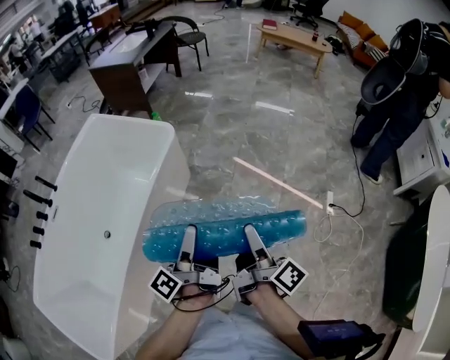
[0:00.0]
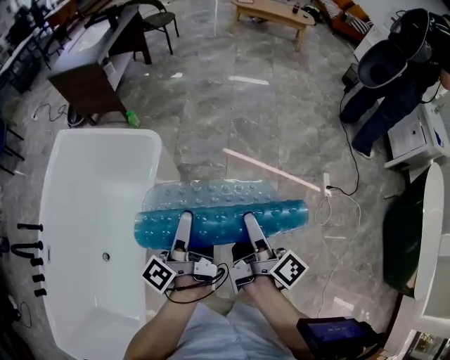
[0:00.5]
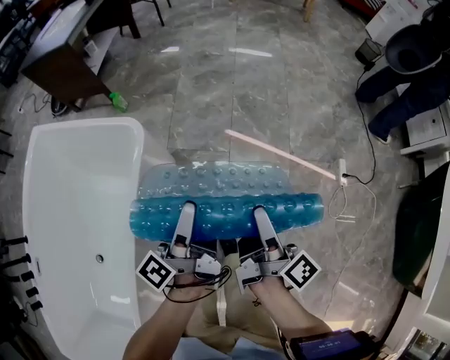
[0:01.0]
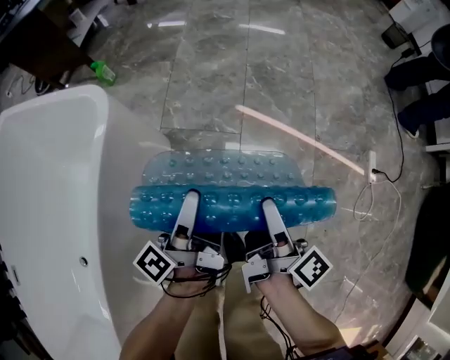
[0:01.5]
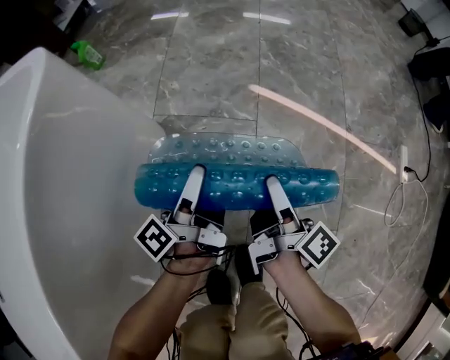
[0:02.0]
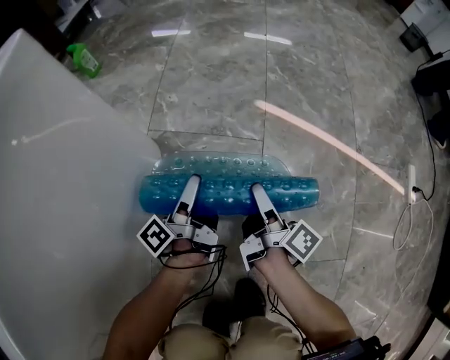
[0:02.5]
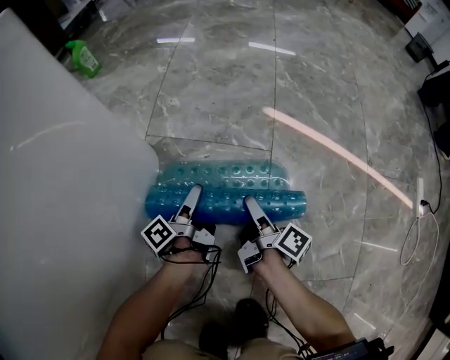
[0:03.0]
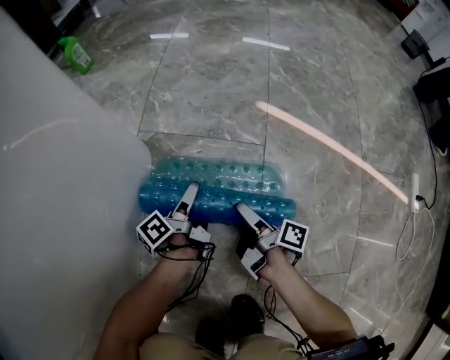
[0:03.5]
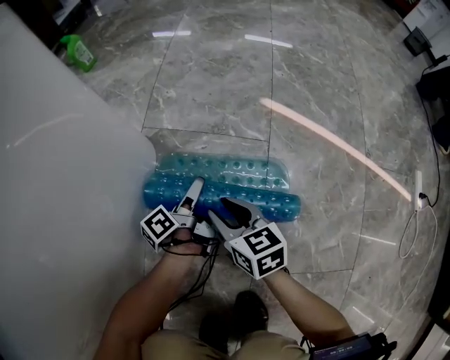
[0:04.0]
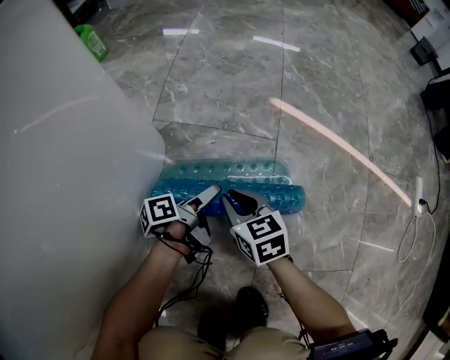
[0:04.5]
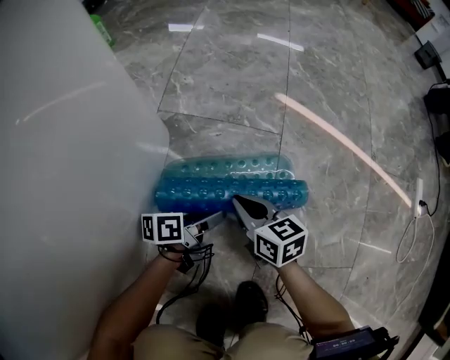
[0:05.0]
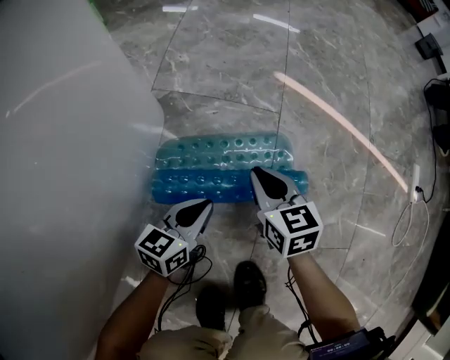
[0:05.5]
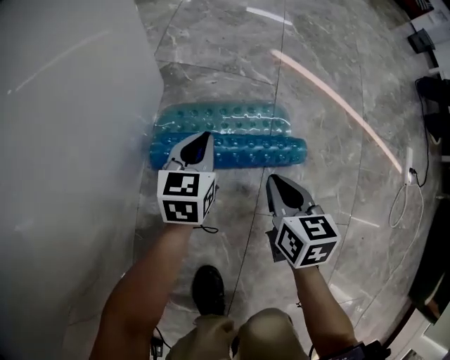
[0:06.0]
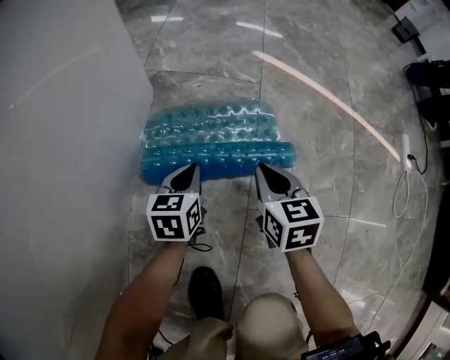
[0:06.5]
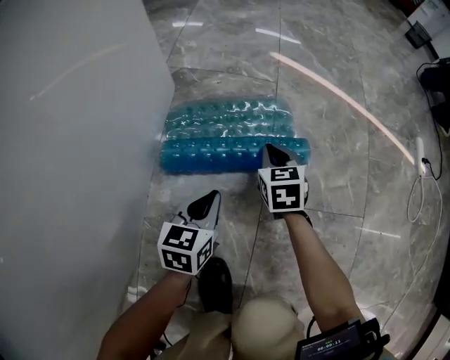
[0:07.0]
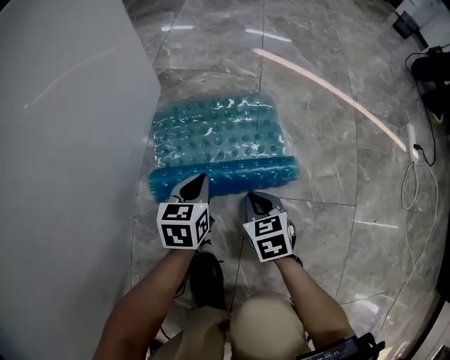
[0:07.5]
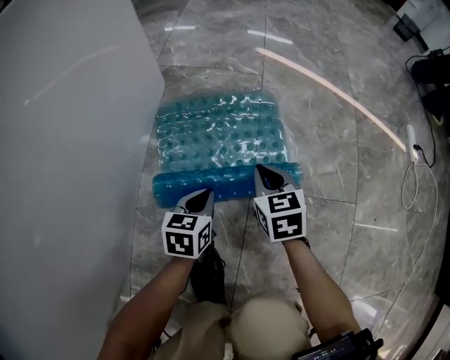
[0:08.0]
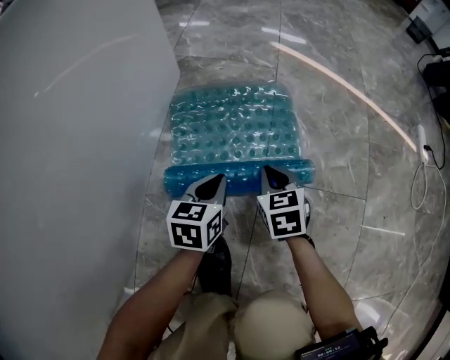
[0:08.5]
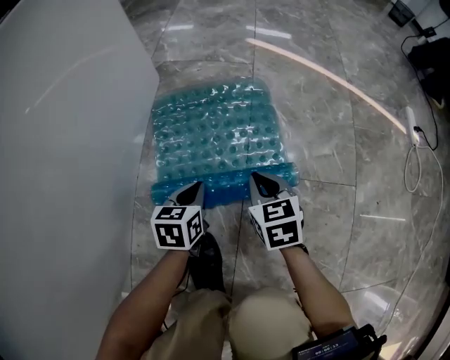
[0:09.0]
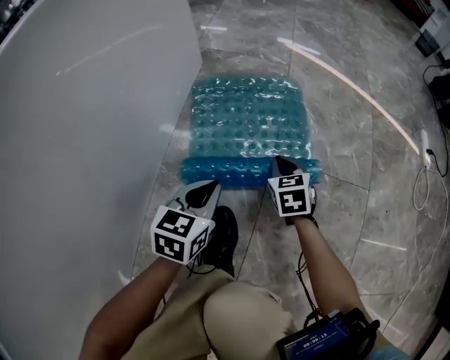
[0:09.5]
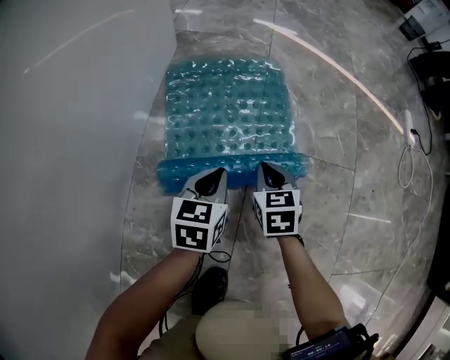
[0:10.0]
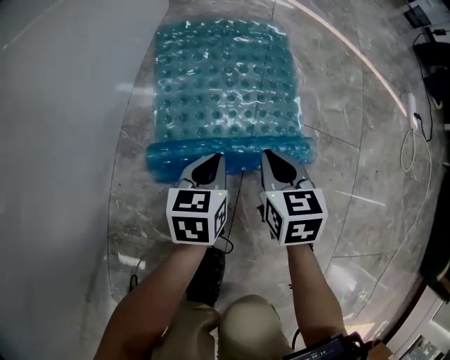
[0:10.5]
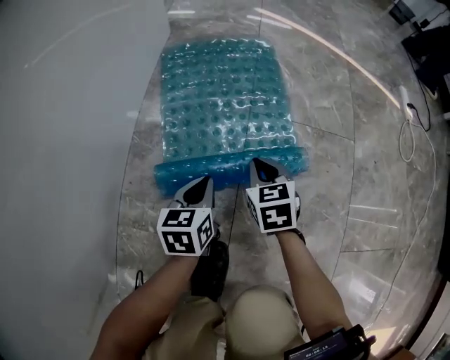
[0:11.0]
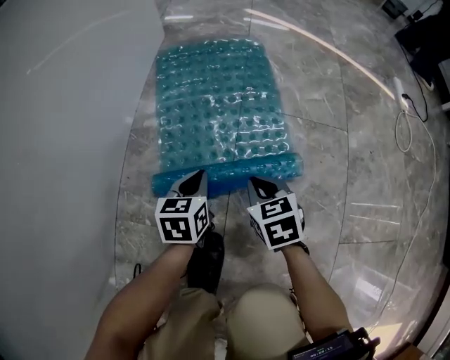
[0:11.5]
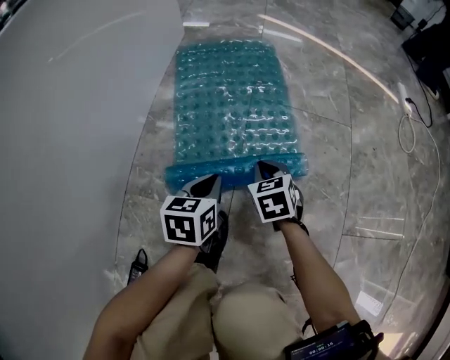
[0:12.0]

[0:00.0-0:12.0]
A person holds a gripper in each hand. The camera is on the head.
0:00.0 to 0:02.0: The grippers both shift downward and forward by approximately 70 cm. The left gripper swivels some 20 degrees.
0:02.0 to 0:04.0: The left gripper moves downward, roughly 30 cm. The right gripper moves downward and to the left, roughly 25 cm, rolls counterclockwise, seen from behind, by some 70 degrees, and closes up.
0:04.0 to 0:06.0: The left gripper shifts about 10 cm upward and backward, rotates around the line of its fingers by approximately 80 degrees, clockwise from behind, and closes up. Meanwhile the right gripper heads backward and to the right, covering approximately 15 cm, changes its angle by roughly 20 degrees, and closes.
0:06.0 to 0:08.0: The left gripper heads backward, covering roughly 20 cm. The right gripper shifts approximately 5 cm backward.
0:08.0 to 0:10.0: The right gripper shifts some 15 cm backward. Meanwhile the left gripper goes about 10 cm backward and upward.
0:10.0 to 0:12.0: Both grippers travel together backward, about 20 cm.

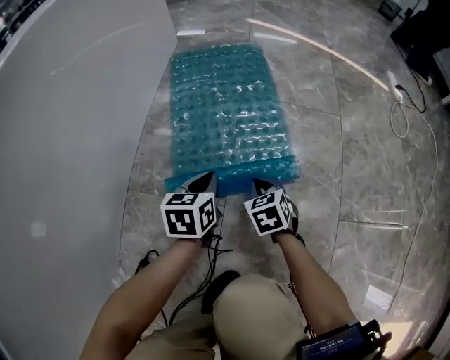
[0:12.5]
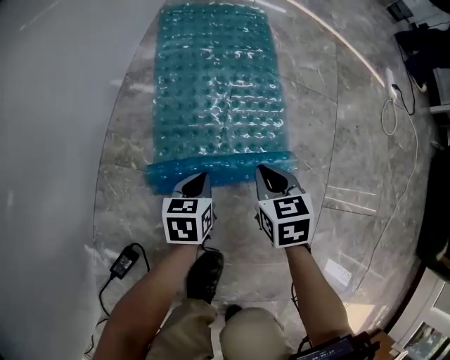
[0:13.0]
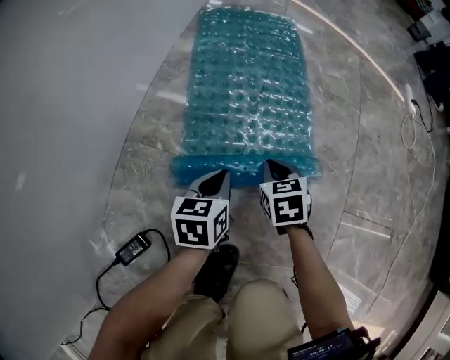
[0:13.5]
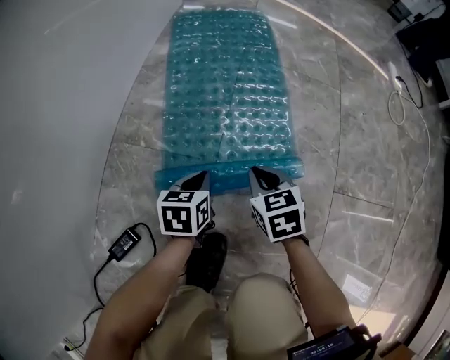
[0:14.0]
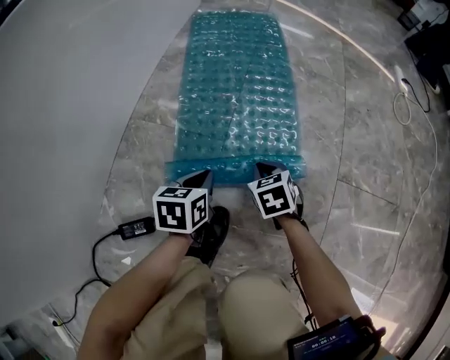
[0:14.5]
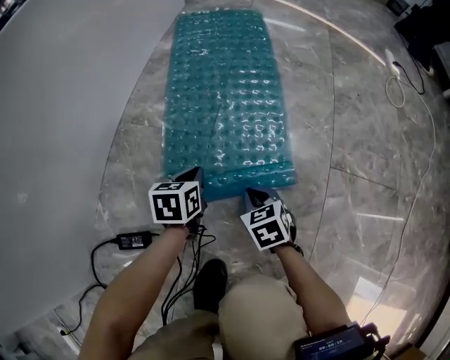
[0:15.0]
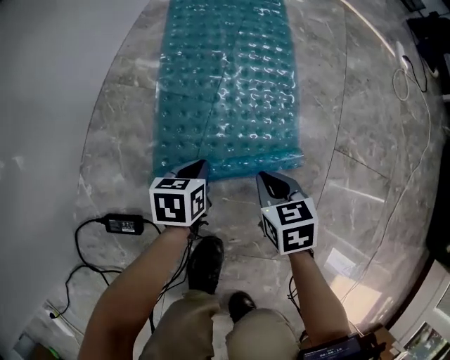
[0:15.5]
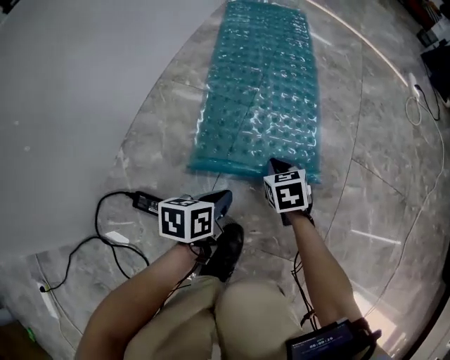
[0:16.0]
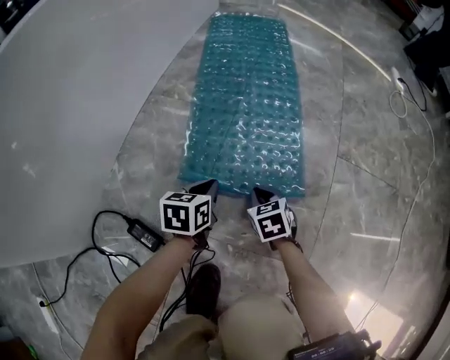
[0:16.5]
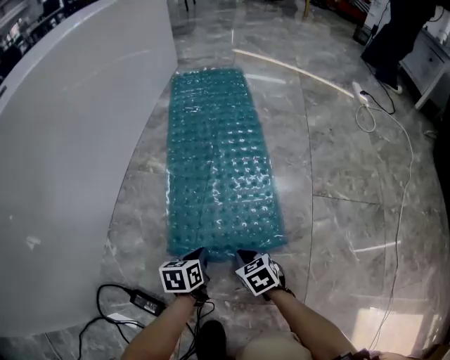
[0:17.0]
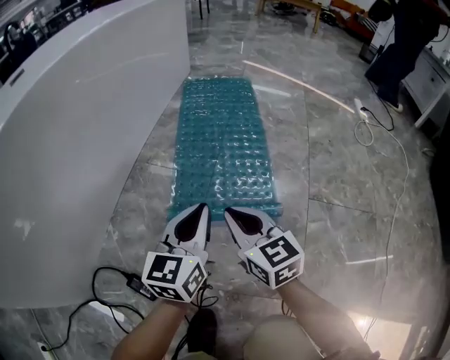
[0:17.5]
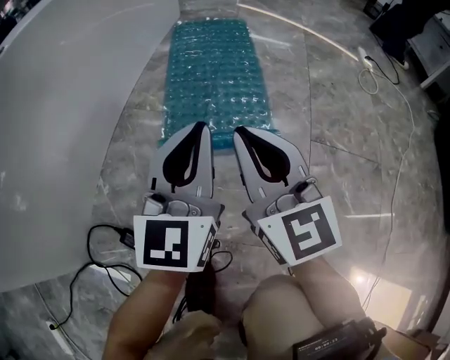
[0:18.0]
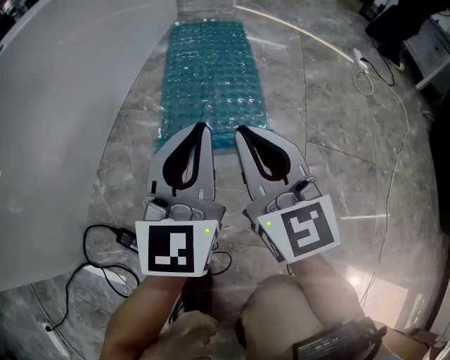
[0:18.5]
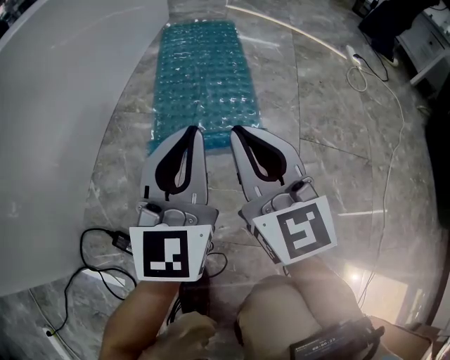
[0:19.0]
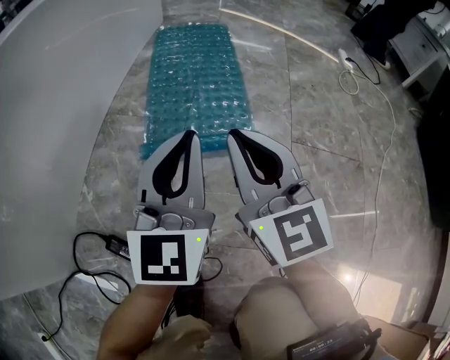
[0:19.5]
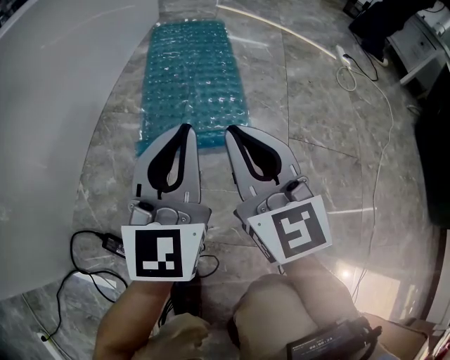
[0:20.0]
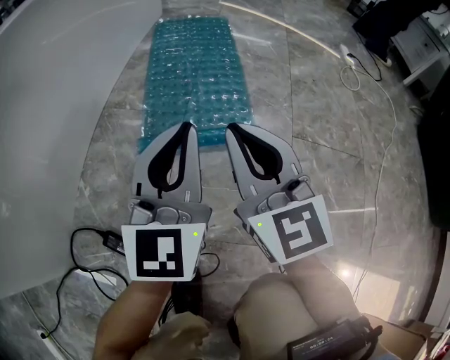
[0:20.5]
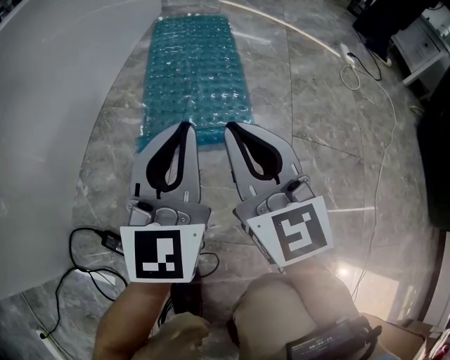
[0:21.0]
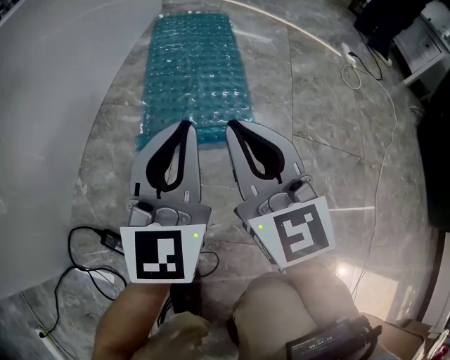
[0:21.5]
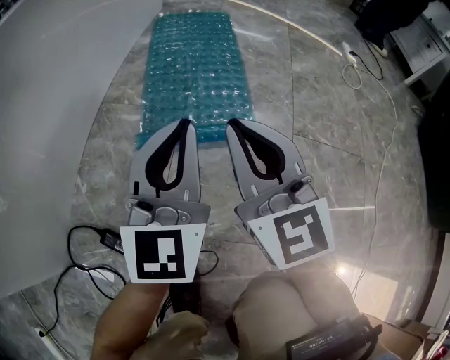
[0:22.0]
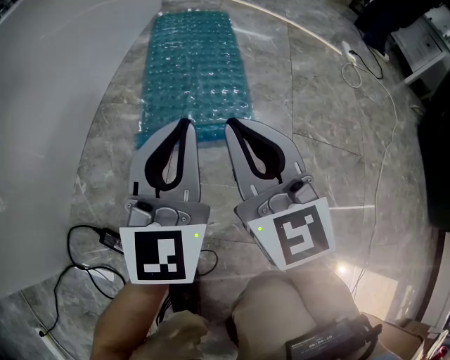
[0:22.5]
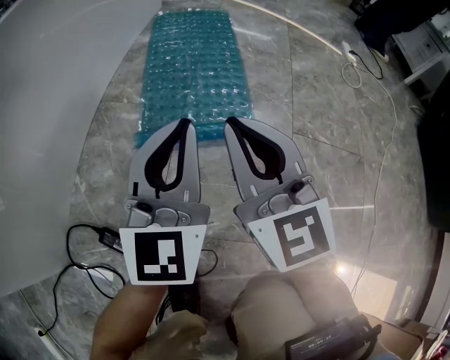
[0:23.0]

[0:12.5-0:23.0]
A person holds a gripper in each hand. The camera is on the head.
0:12.5 to 0:14.5: Both grippers travel together backward, about 20 cm.
0:14.5 to 0:16.5: Both grippers move backward, approximately 15 cm.
0:16.5 to 0:19.0: Both grippers travel together upward, about 35 cm. The left gripper tilts its fingers about 50 degrees upward. The right gripper points its fingers about 50 degrees further upward.
0:19.0 to 0:21.0: Neither gripper changes place.
0:21.0 to 0:23.0: Neither gripper changes place.

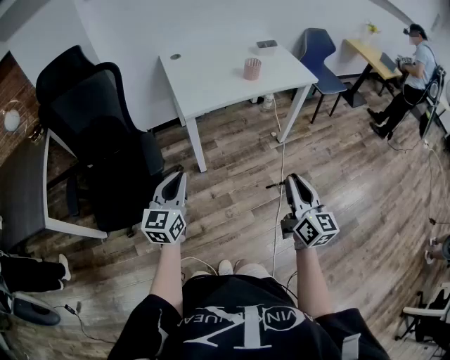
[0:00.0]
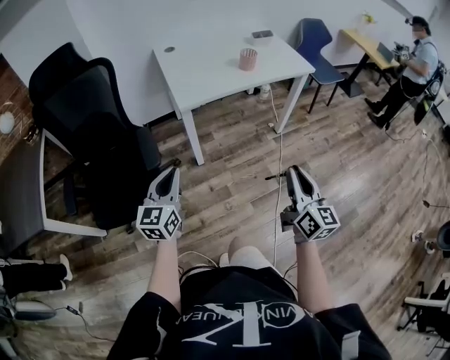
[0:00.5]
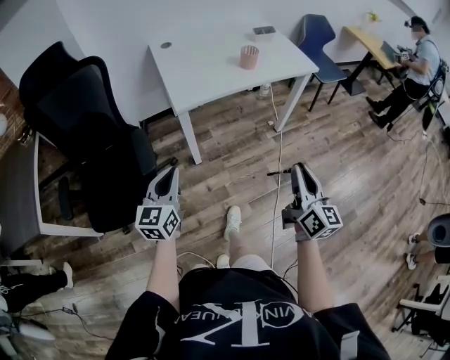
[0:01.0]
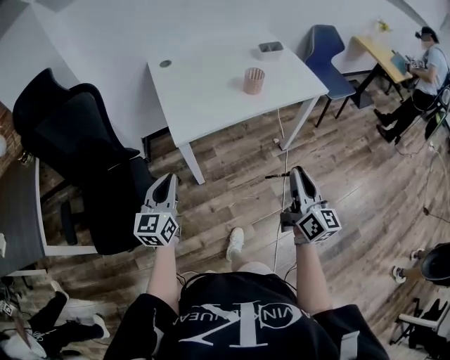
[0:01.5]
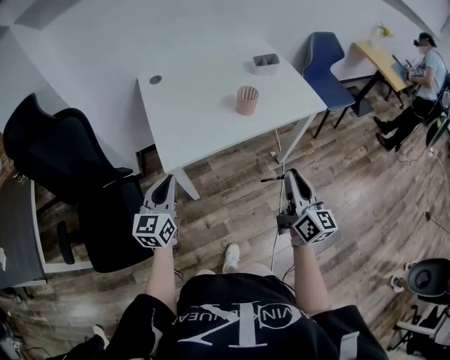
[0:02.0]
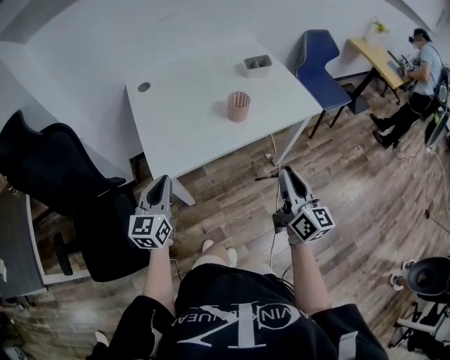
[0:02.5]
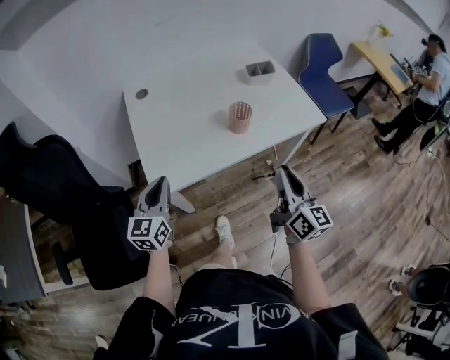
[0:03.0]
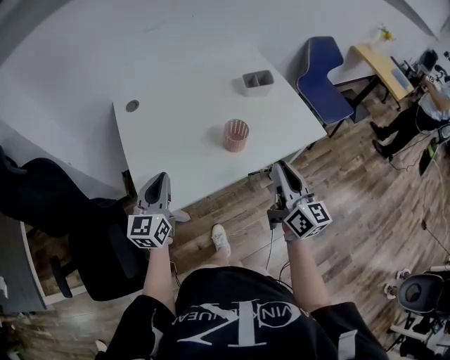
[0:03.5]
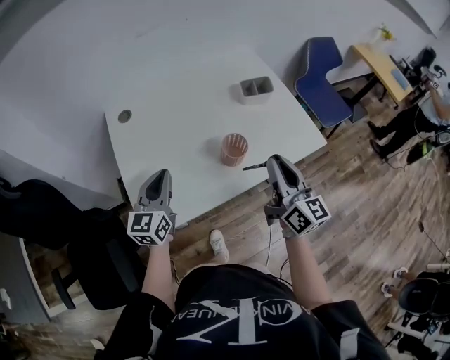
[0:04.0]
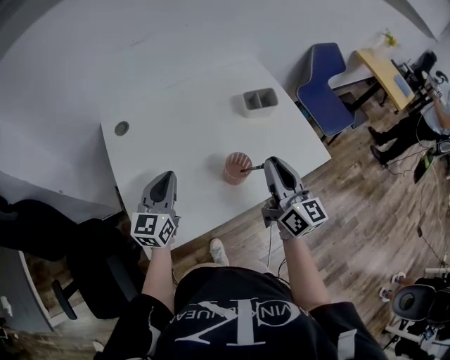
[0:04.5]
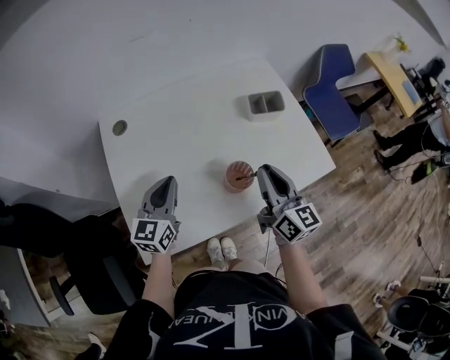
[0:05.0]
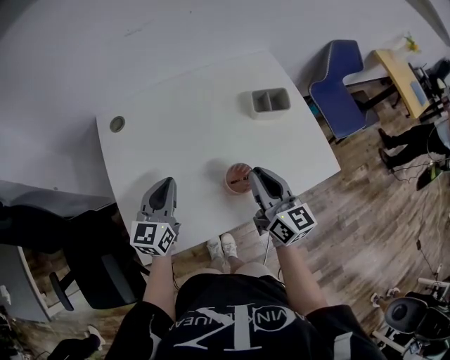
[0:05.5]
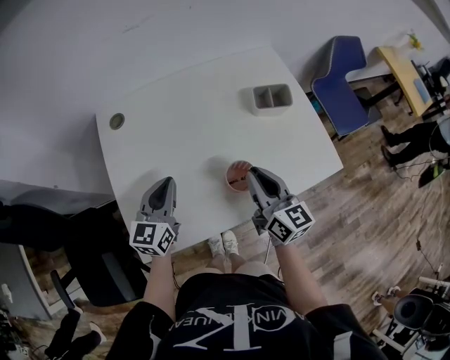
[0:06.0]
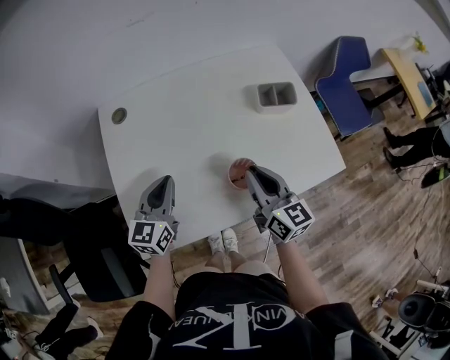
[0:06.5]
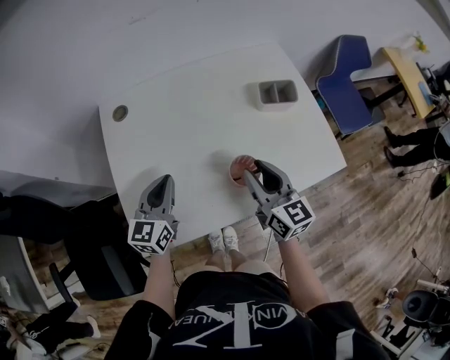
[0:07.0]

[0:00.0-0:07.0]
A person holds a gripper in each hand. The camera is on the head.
0:00.0 to 0:02.0: The two grippers go approximately 30 cm forward.
0:02.0 to 0:03.5: Both grippers move forward, some 20 cm.
0:03.5 to 0:05.0: Both grippers move forward, some 15 cm.
0:05.0 to 0:07.0: The right gripper changes place by some 5 cm.
